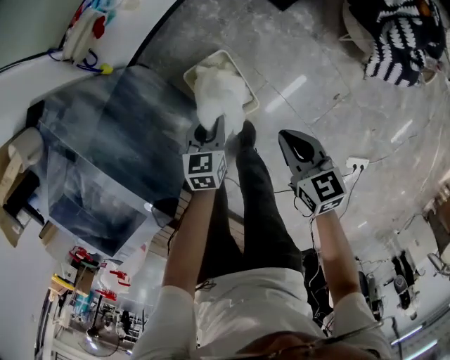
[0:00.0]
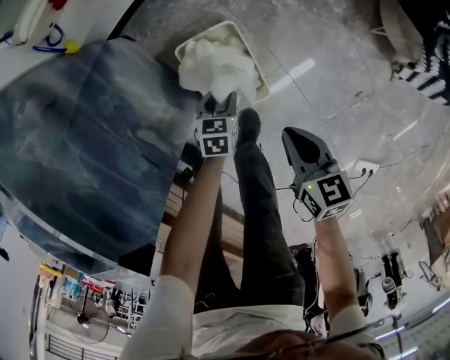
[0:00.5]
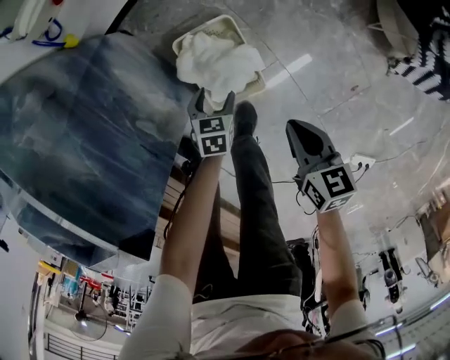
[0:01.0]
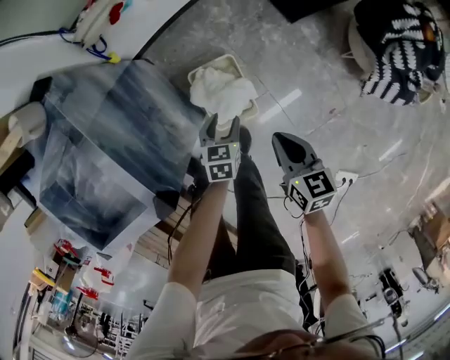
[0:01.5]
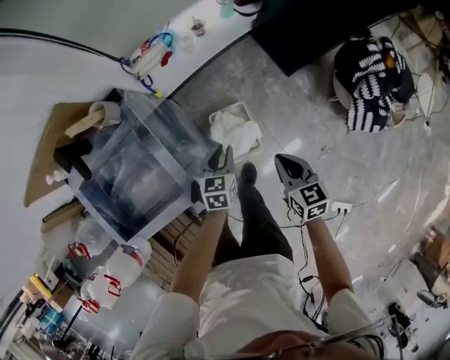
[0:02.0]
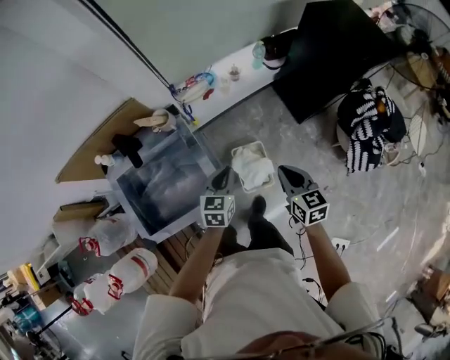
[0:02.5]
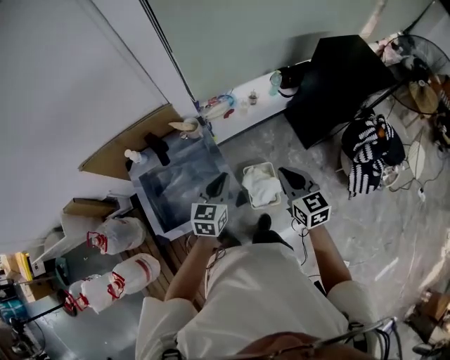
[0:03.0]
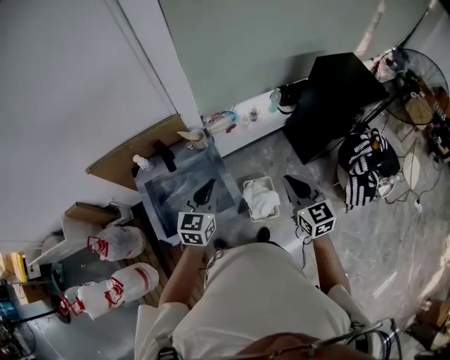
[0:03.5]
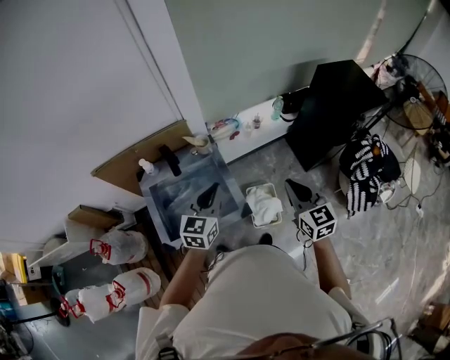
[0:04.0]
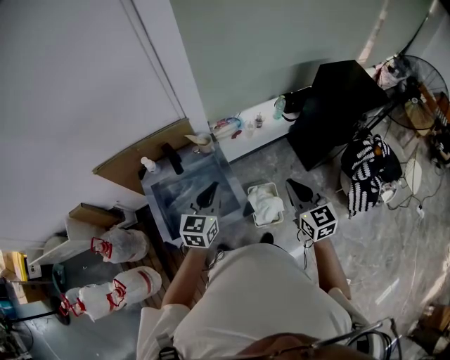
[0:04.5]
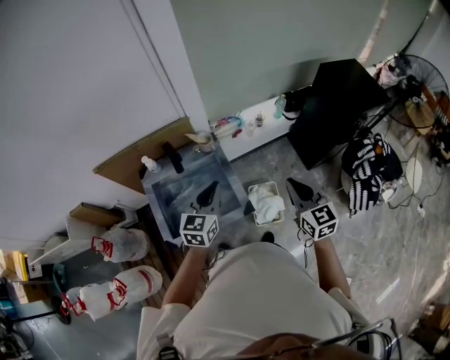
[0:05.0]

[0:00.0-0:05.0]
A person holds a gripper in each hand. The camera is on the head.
0.0 to 2.5 s: The grippers both shift upward and to the left by about 40 cm. The left gripper opens, then closes once more.
2.5 to 5.0 s: The two grippers go some 25 cm upward and to the left. The right gripper rotates approximately 20 degrees.

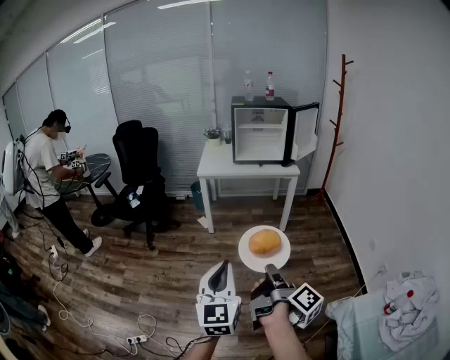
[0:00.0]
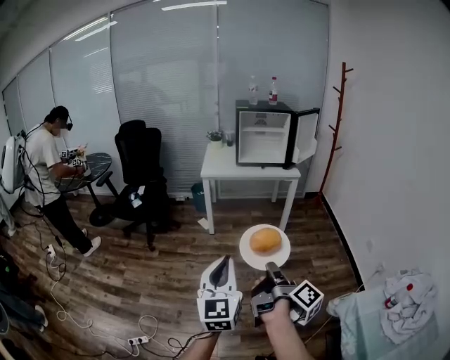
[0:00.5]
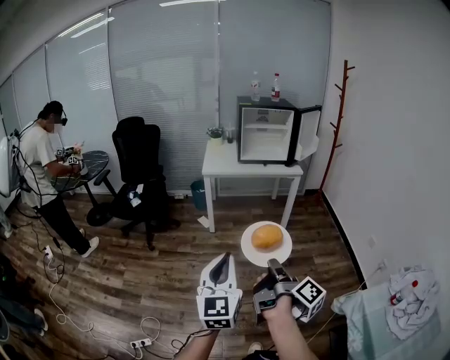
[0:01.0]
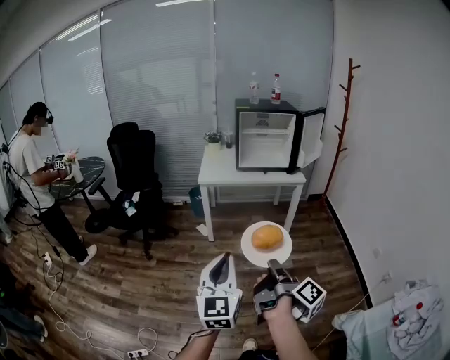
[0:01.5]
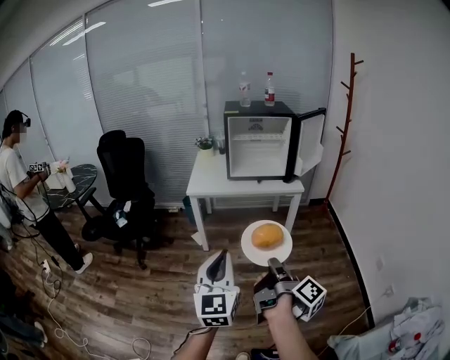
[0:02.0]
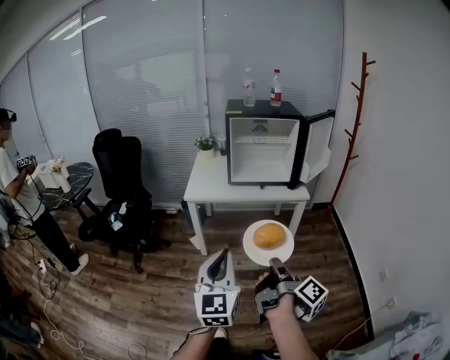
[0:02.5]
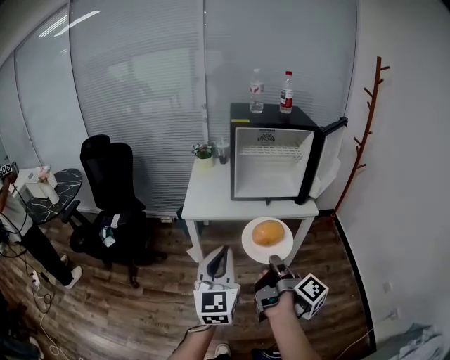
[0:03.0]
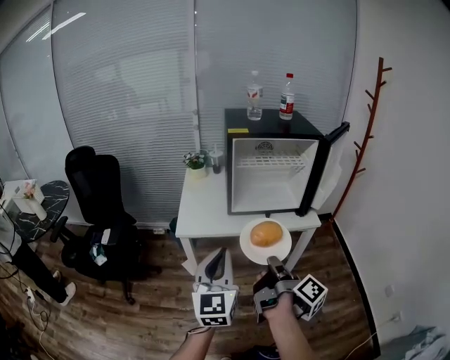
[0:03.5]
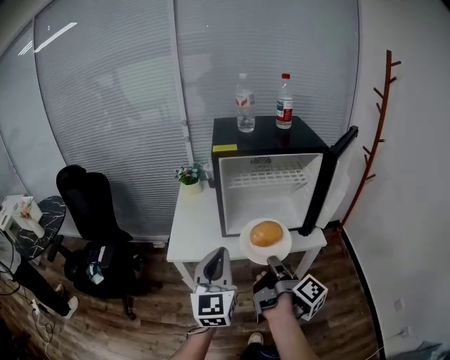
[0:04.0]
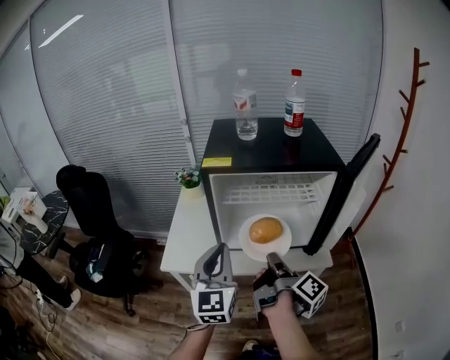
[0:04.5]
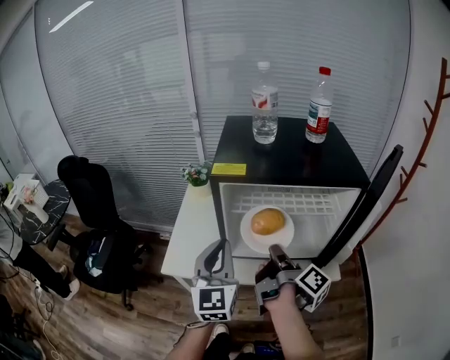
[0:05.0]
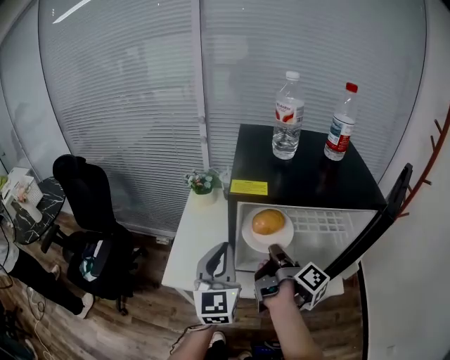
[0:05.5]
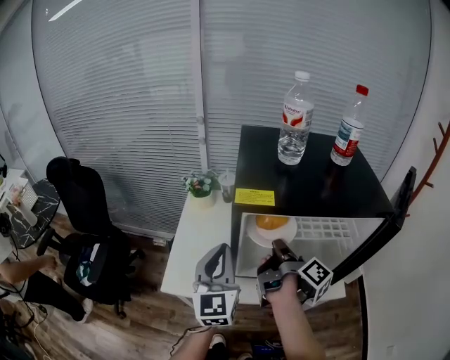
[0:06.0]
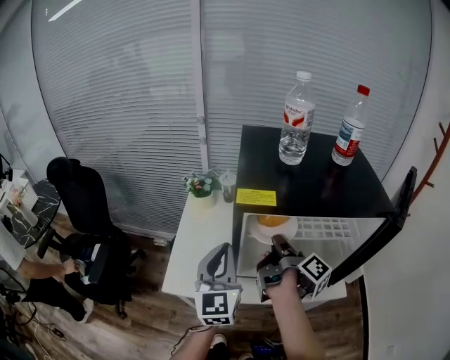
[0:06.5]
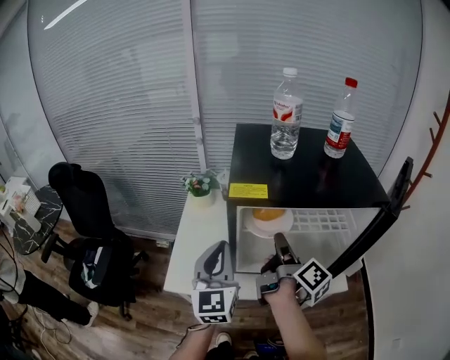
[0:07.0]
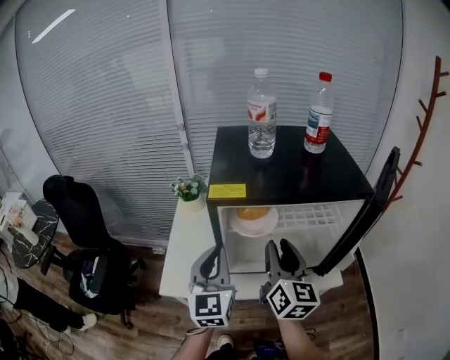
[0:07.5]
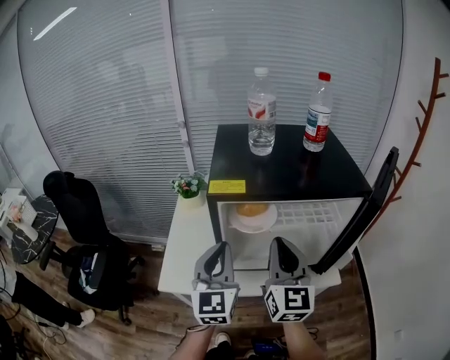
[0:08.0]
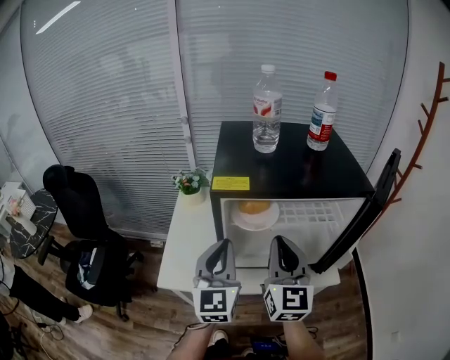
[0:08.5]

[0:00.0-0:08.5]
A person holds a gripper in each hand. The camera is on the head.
0.0 to 2.0 s: The left gripper ends up roughly 25 cm from where it was.
2.0 to 4.0 s: The left gripper shifts by approximately 50 cm.
4.0 to 6.5 s: The left gripper shifts by some 25 cm.
6.5 to 8.5 s: The left gripper moves some 5 cm.

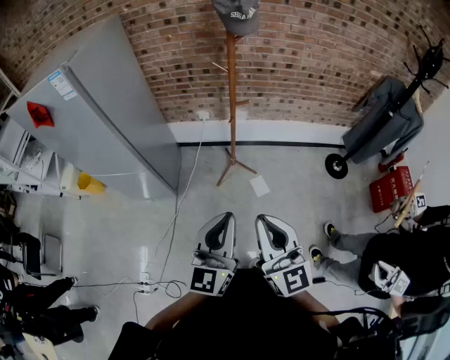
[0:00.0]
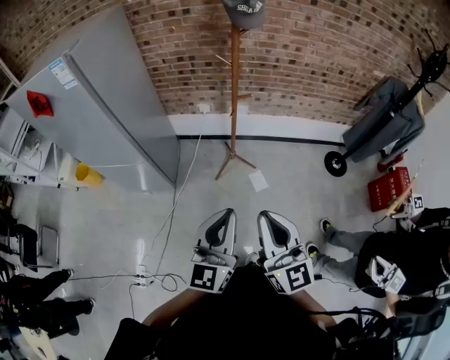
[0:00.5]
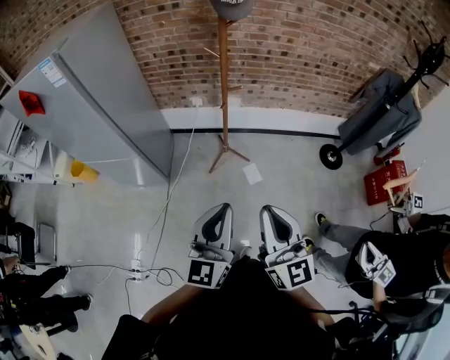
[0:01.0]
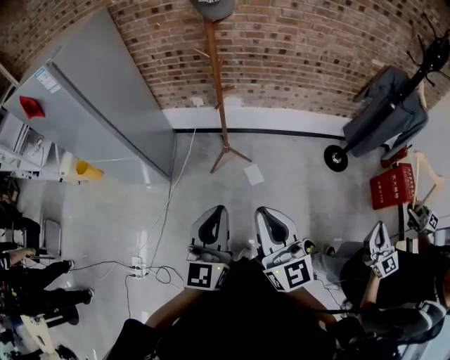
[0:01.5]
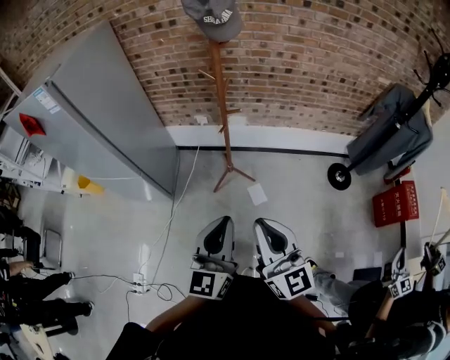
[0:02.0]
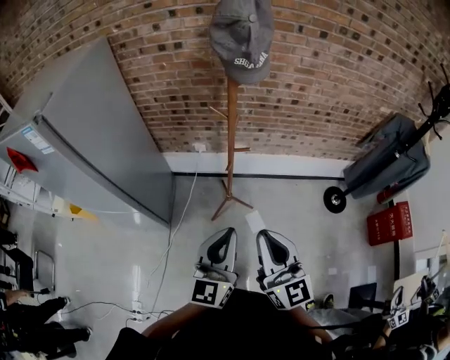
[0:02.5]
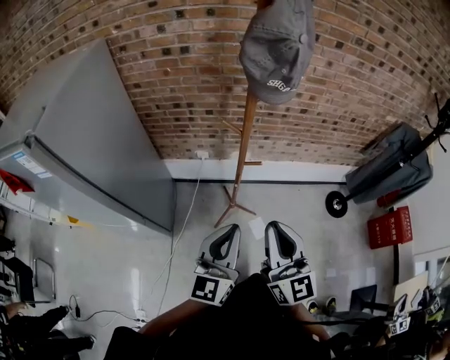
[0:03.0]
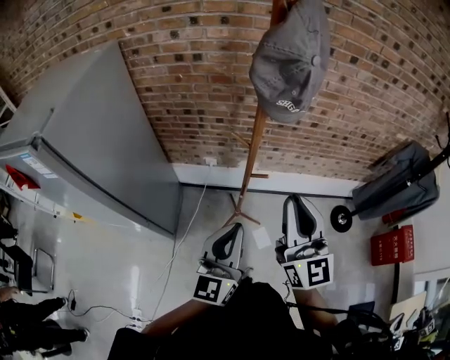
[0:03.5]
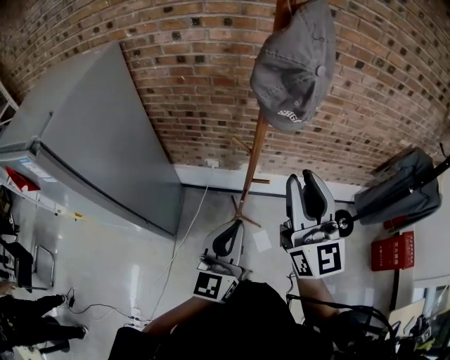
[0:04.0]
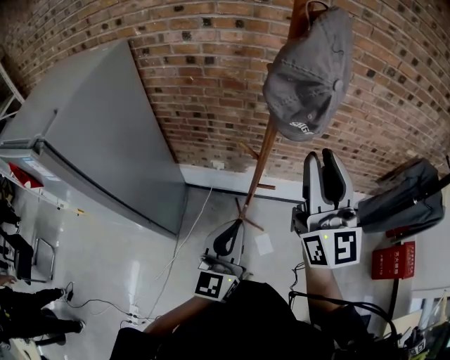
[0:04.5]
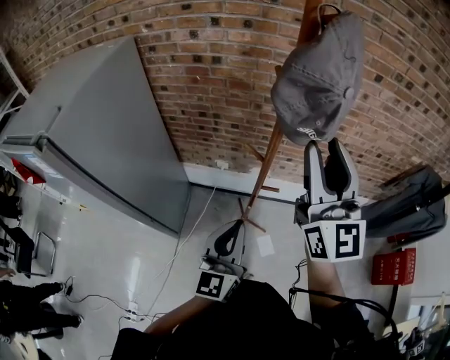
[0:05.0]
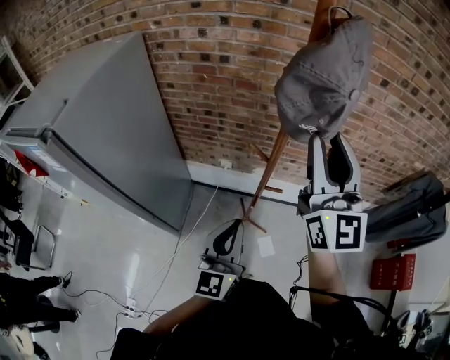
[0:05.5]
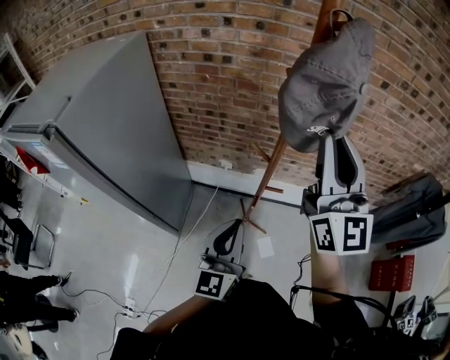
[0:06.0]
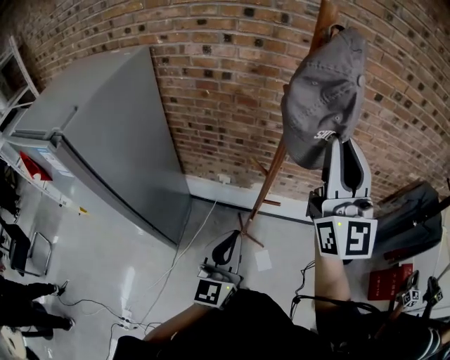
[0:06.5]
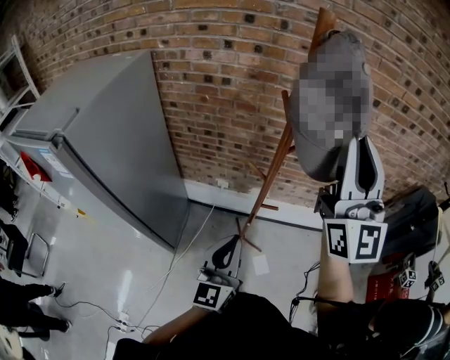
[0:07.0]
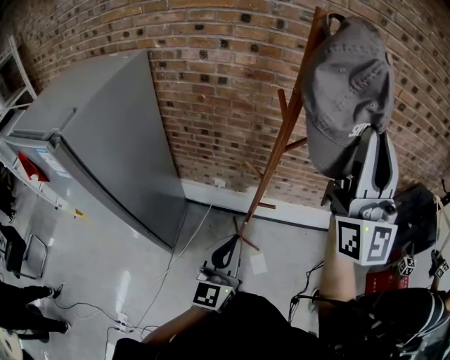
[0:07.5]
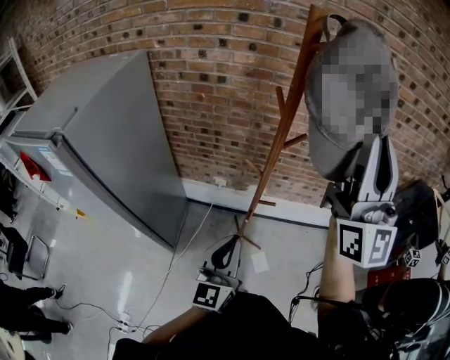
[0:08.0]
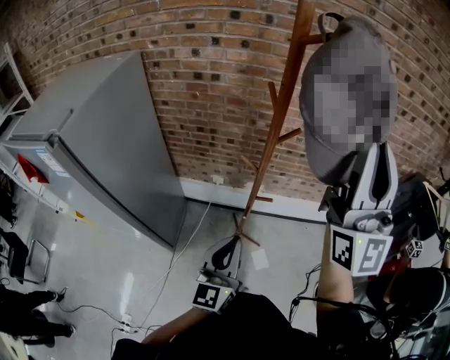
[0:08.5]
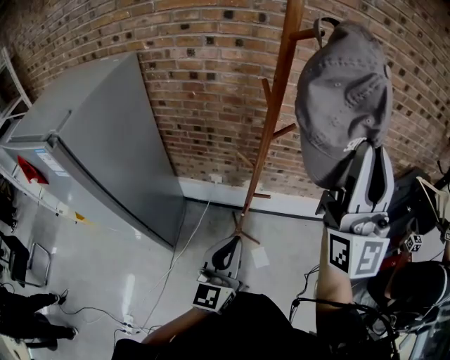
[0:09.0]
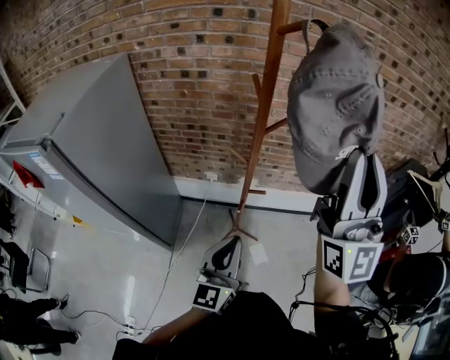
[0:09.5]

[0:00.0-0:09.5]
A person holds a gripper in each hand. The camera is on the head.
0.0 to 2.0 s: The grippers both shift to the right and forward by about 10 cm.
2.0 to 4.0 s: The right gripper travels forward and upward by about 40 cm; the left gripper is displaced forward by some 30 cm.
4.0 to 5.5 s: The right gripper travels forward and upward by some 10 cm.
5.5 to 7.5 s: The right gripper goes approximately 15 cm upward and backward, and turns by about 20 degrees.
7.5 to 9.5 s: The left gripper ends up some 5 cm from where it was, while the right gripper shifts approximately 5 cm backward.

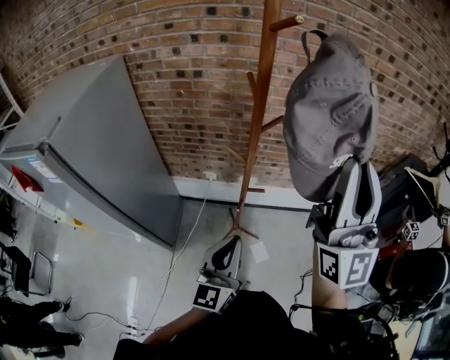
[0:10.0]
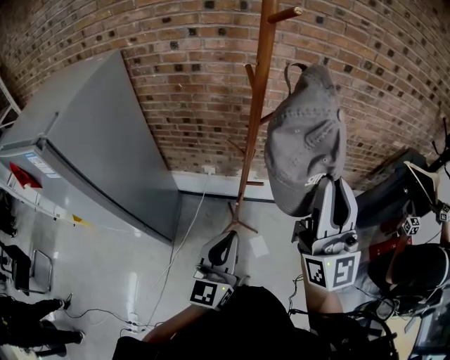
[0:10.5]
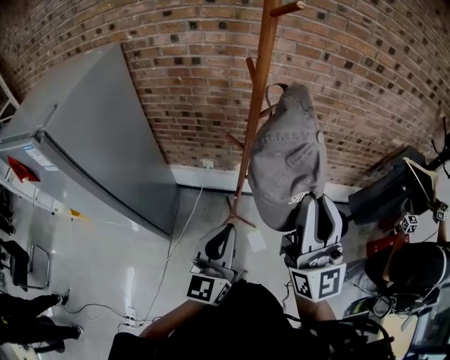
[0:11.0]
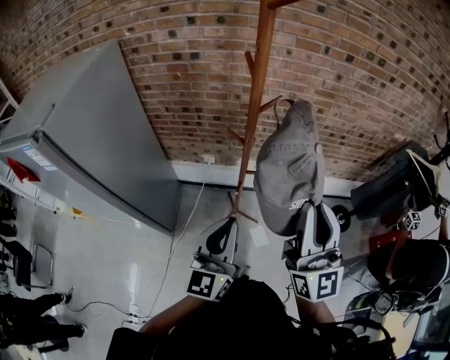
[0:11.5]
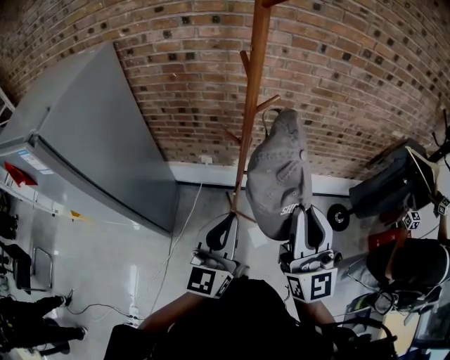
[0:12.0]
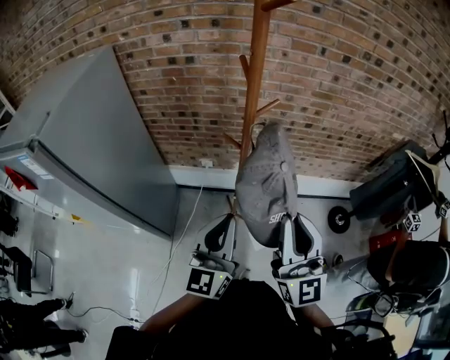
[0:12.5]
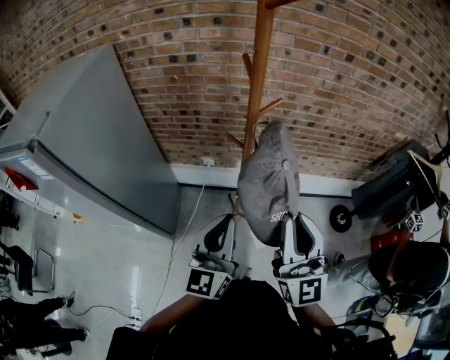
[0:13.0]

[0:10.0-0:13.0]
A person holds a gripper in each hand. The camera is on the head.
10.0 to 11.5 s: The right gripper is displaced downward by roughly 15 cm.
11.5 to 13.0 s: The right gripper moves roughly 5 cm.

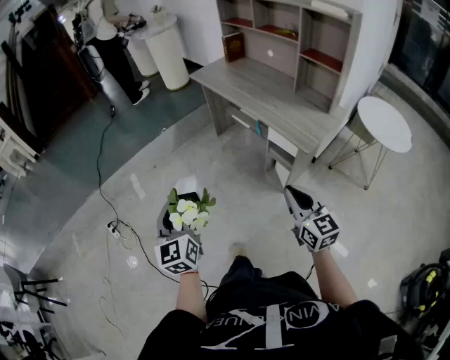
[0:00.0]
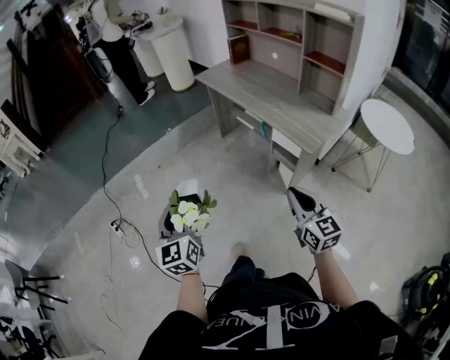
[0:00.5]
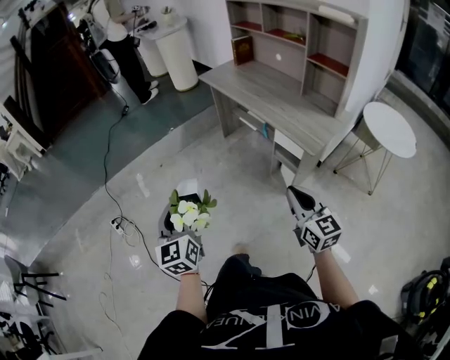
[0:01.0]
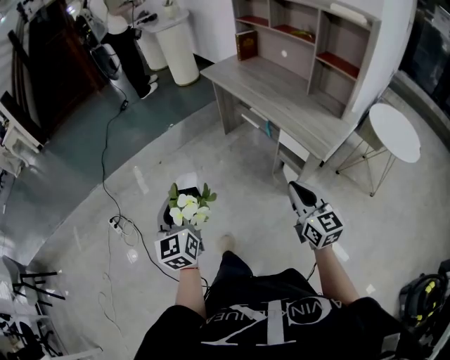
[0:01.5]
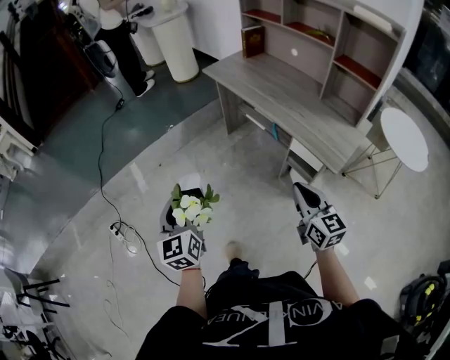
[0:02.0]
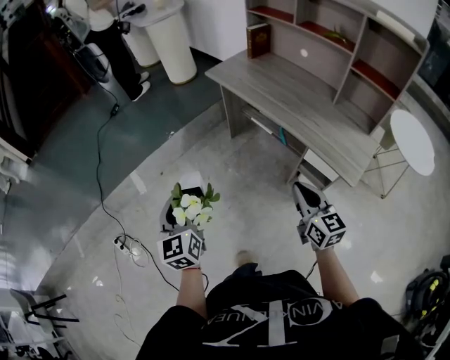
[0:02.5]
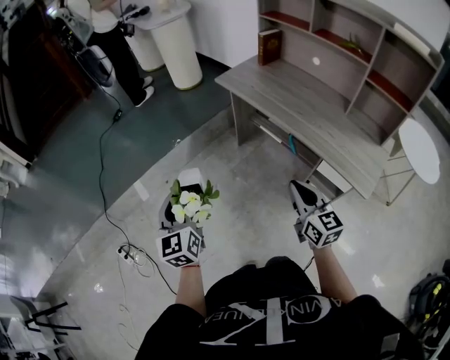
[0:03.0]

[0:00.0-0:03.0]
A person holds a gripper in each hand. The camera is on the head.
0.0 to 1.5 s: The grippers move only a little.
1.5 to 3.0 s: Both grippers move forward, approximately 30 cm.
